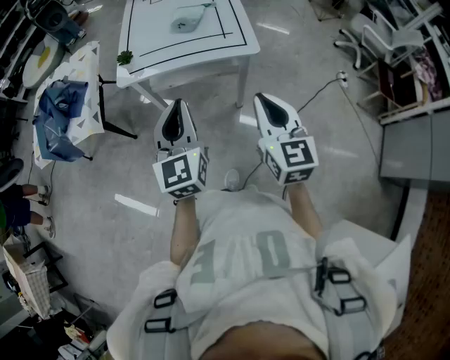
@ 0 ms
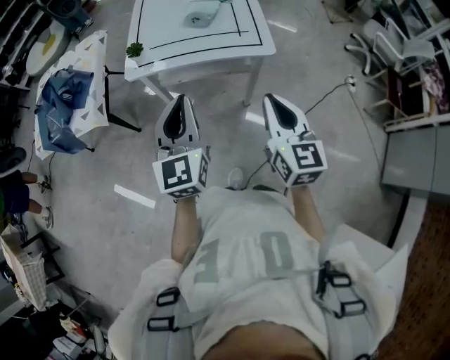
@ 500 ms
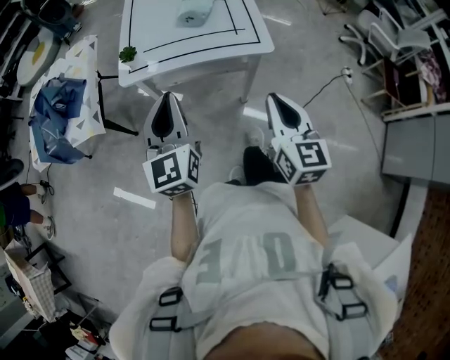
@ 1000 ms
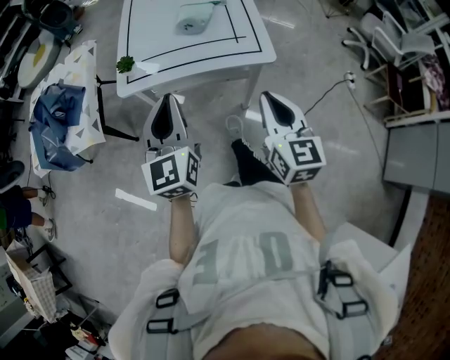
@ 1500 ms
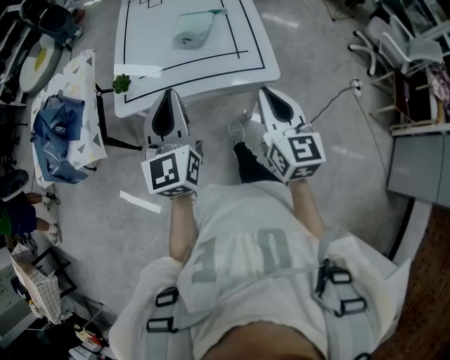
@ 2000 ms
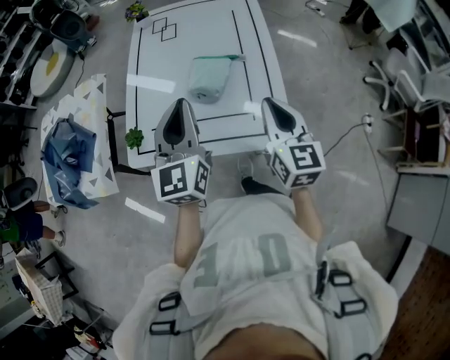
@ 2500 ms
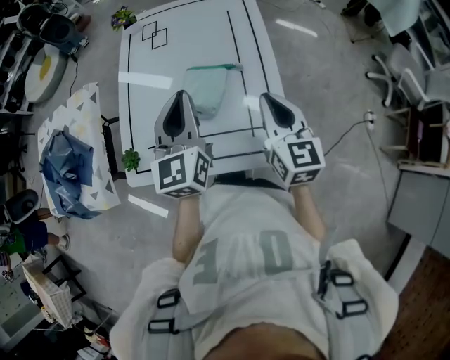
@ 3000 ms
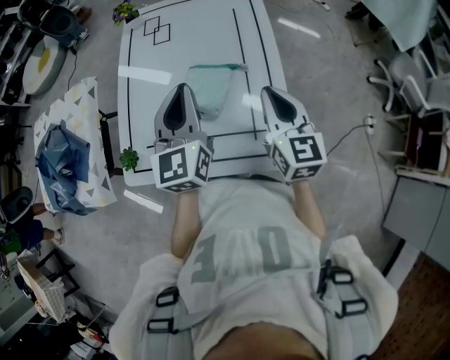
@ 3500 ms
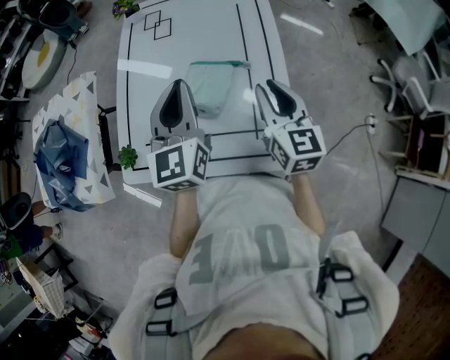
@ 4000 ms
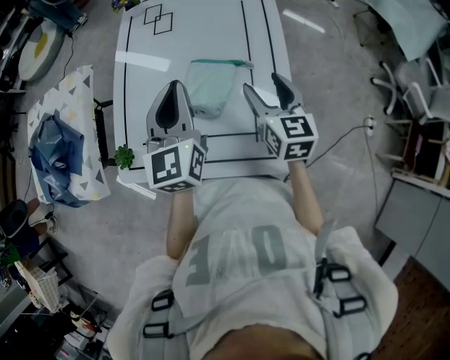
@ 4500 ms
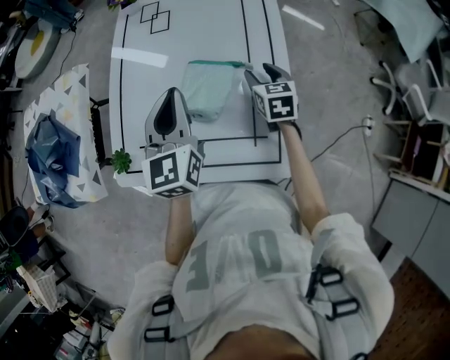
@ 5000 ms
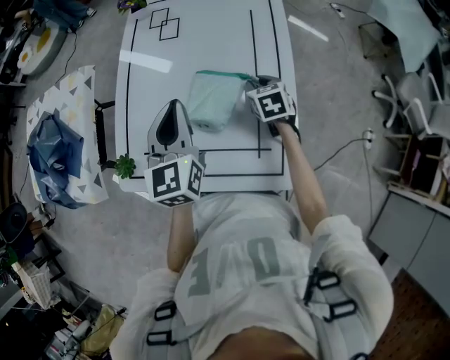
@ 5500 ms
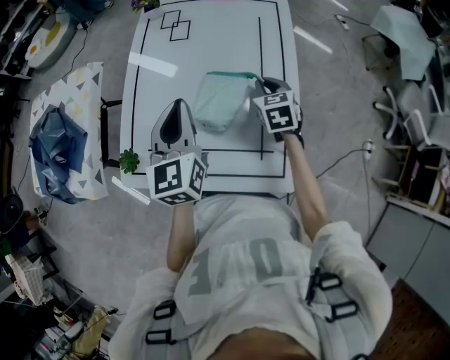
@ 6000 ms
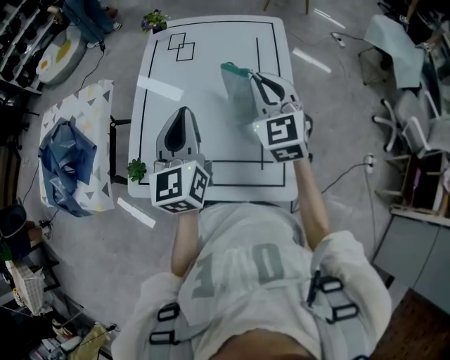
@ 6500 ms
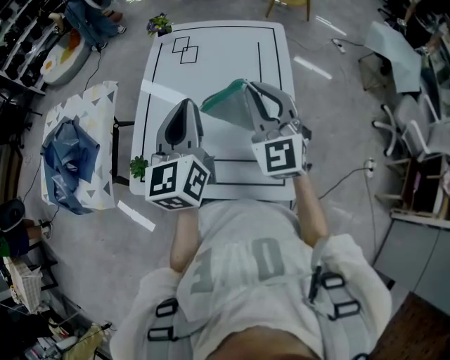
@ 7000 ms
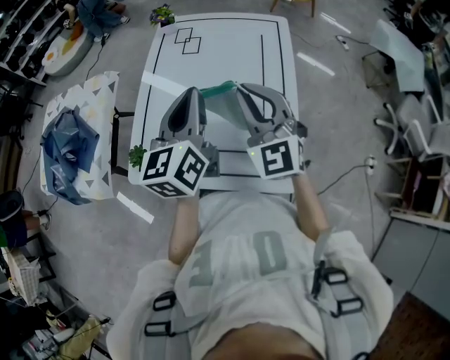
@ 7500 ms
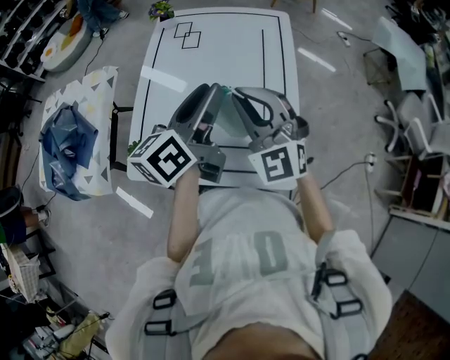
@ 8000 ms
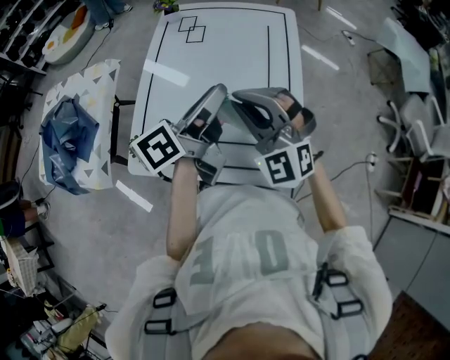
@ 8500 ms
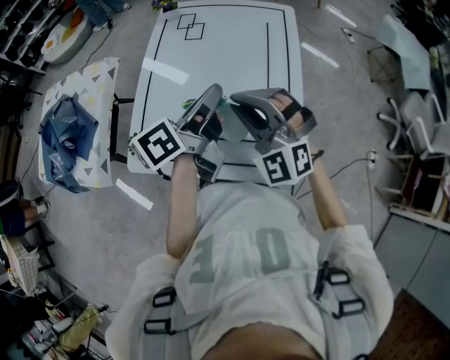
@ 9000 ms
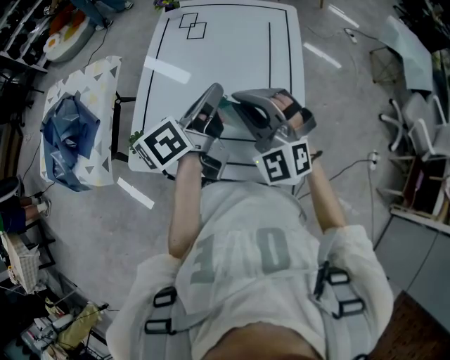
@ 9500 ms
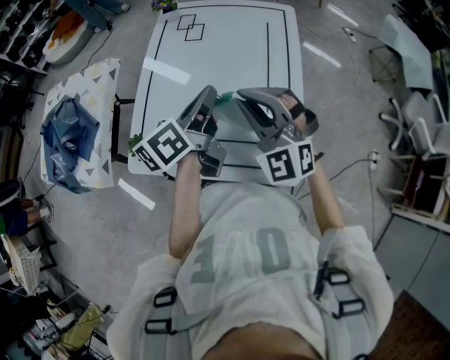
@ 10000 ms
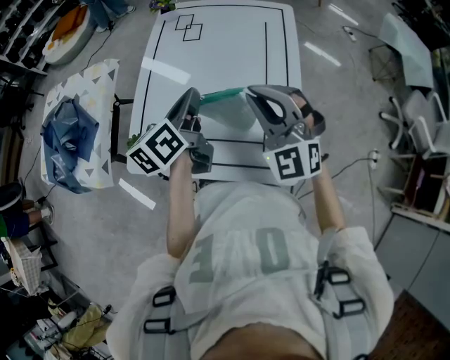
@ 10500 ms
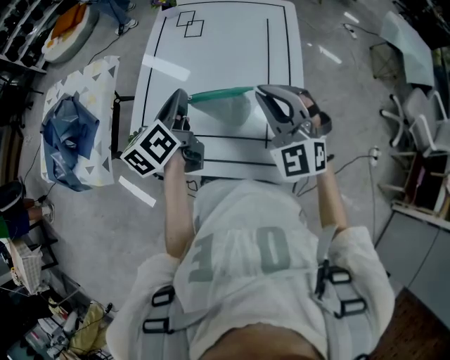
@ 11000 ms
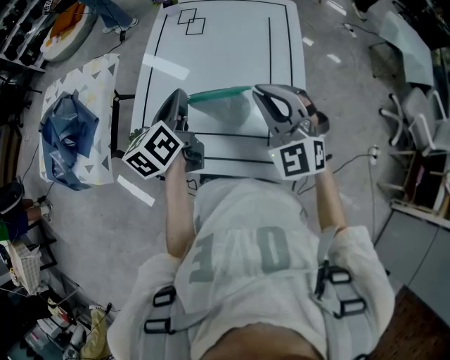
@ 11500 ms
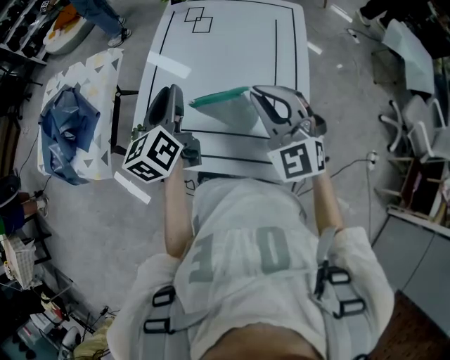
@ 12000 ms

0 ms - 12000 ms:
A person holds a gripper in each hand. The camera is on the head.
0 ms - 2000 ms: Both grippers travel together forward, about 20 cm.
2000 ms - 4000 ms: Both grippers travel together forward, about 35 cm.
4000 ms - 6000 ms: The left gripper moves some 5 cm; the right gripper shifts some 15 cm forward and downward, rotates some 30 degrees, and opens, then closes once more.
6000 ms - 8000 ms: The right gripper heads upward, backward and to the left, covering approximately 25 cm, and tips its fingers upward by roughly 40 degrees. The left gripper is displaced upward and to the right by about 10 cm, turns by some 40 degrees, and opens its fingers.
8000 ms - 10000 ms: The left gripper shifts roughly 5 cm downward, and closes up.
10000 ms - 12000 ms: The left gripper heads to the left, covering roughly 10 cm, and swivels roughly 30 degrees.

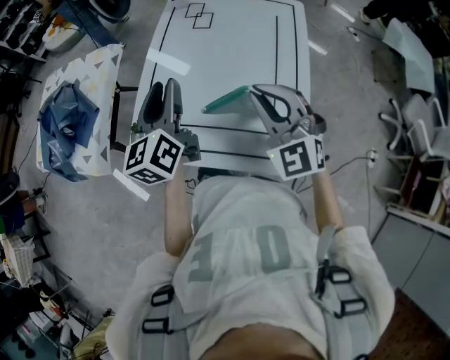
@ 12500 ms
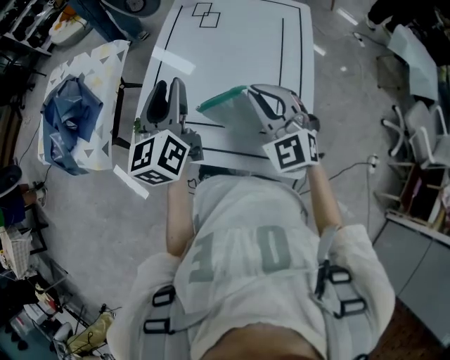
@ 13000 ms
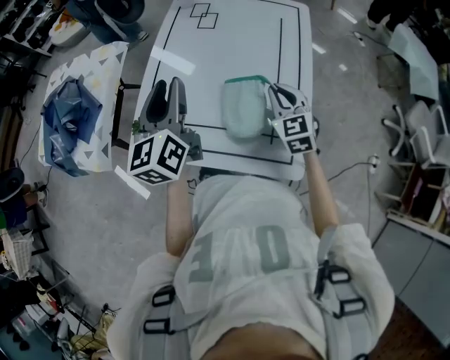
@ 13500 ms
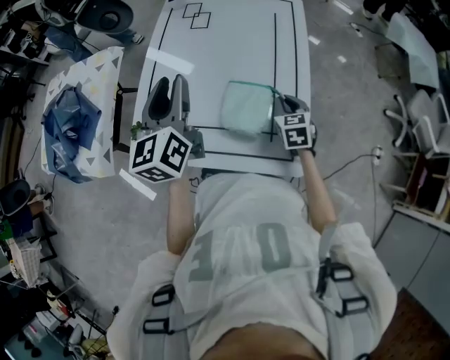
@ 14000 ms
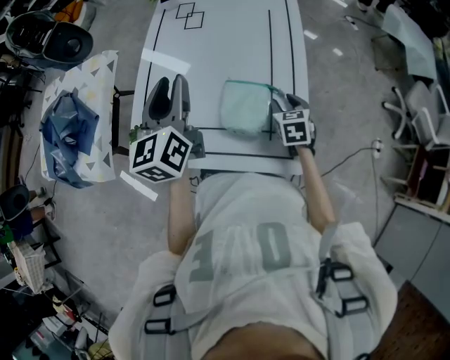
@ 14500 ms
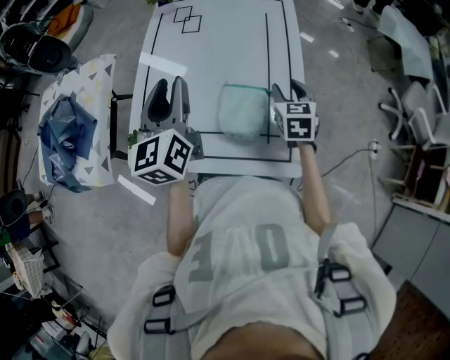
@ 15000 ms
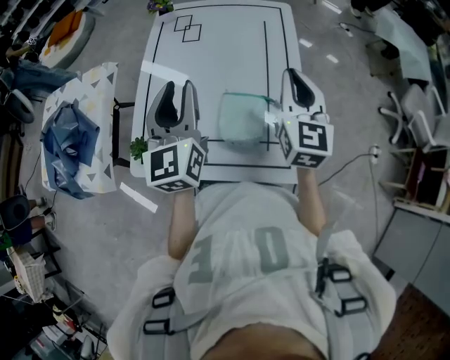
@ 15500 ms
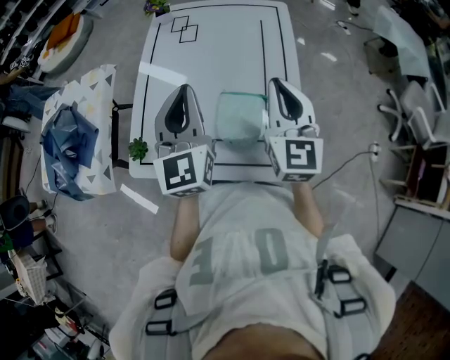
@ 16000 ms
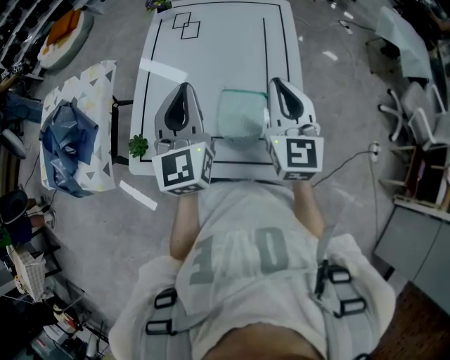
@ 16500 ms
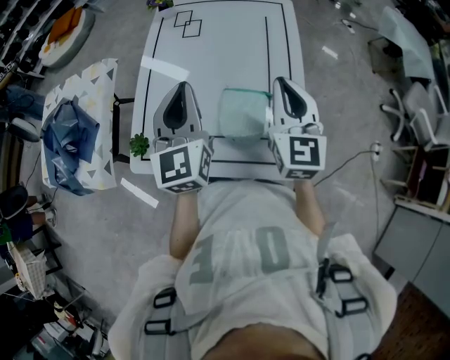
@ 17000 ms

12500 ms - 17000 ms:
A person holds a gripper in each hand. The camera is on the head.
12500 ms - 14500 ms: The right gripper shifts some 25 cm downward and to the right, tilts its fingers some 30 degrees downward, and opens up.
14500 ms - 17000 ms: The left gripper closes its fingers, while the right gripper travels upward by approximately 25 cm, angles its fingers upward, by roughly 40 degrees, and closes its fingers.

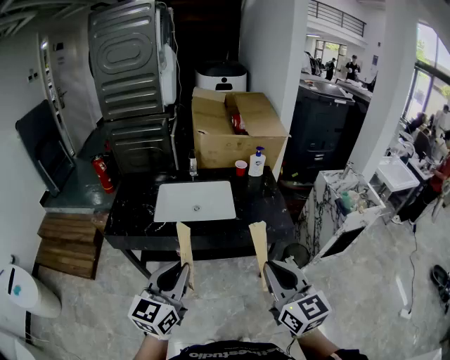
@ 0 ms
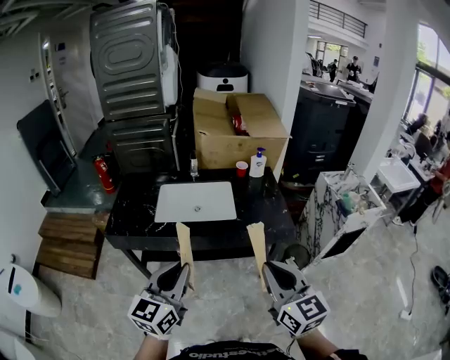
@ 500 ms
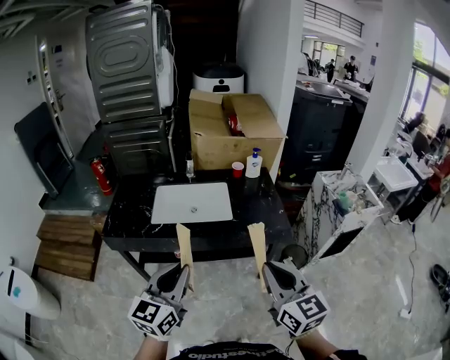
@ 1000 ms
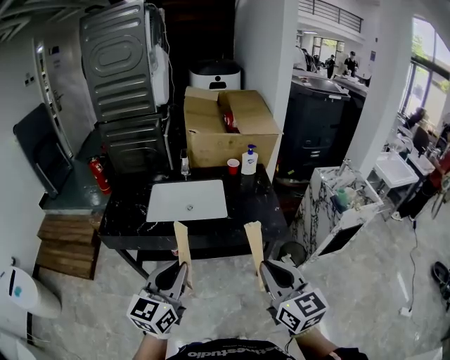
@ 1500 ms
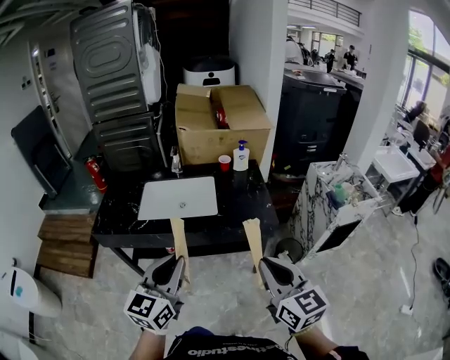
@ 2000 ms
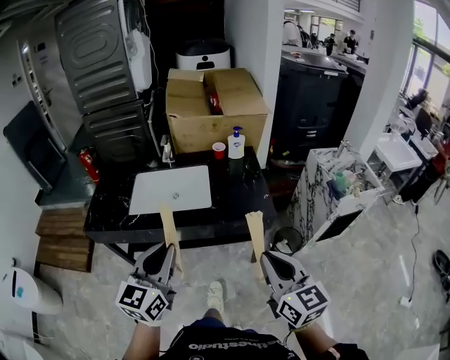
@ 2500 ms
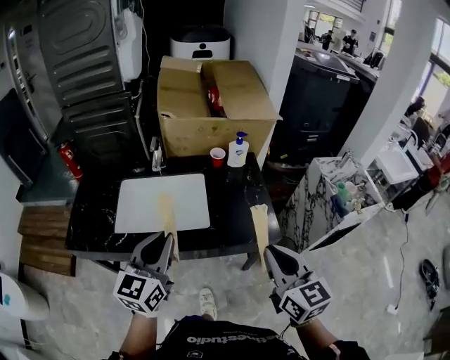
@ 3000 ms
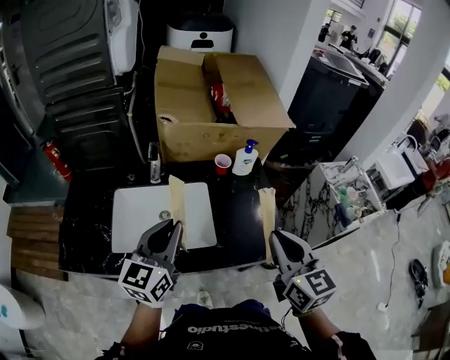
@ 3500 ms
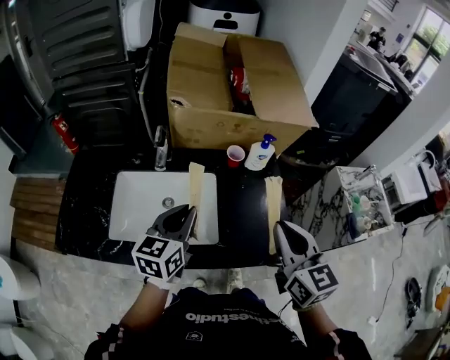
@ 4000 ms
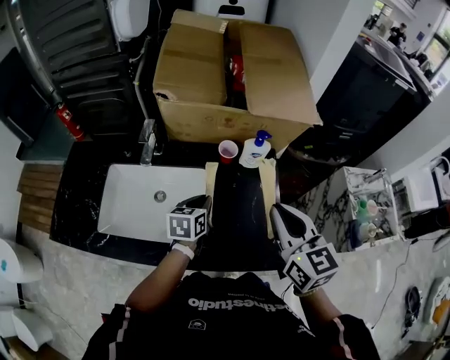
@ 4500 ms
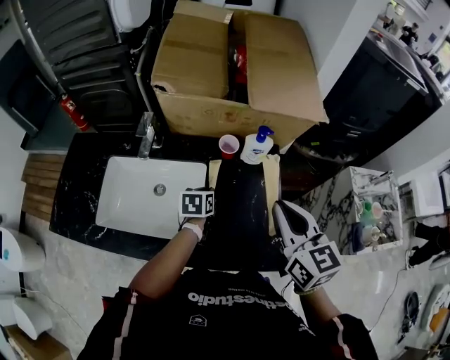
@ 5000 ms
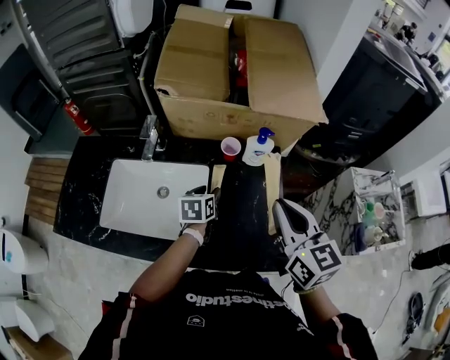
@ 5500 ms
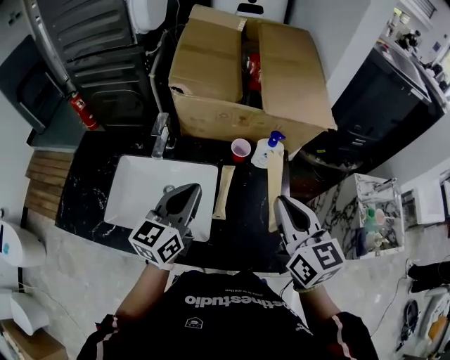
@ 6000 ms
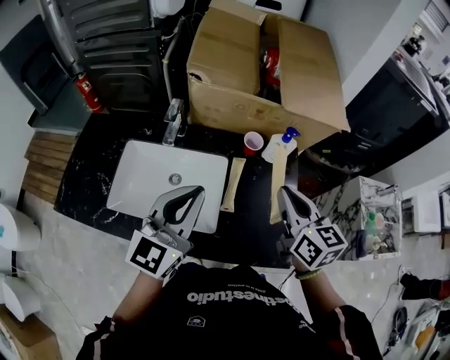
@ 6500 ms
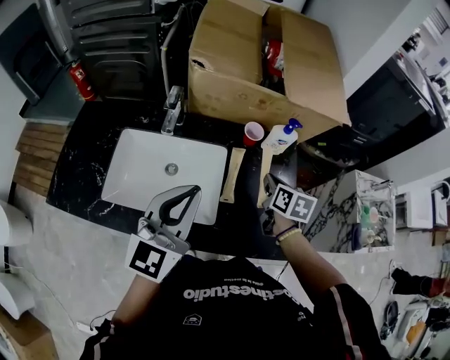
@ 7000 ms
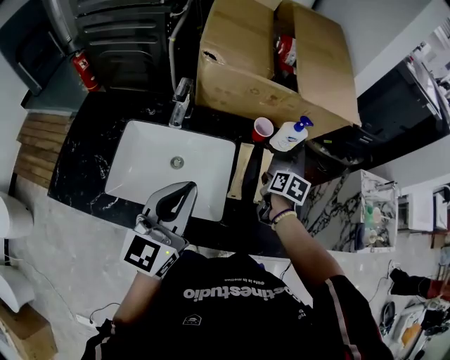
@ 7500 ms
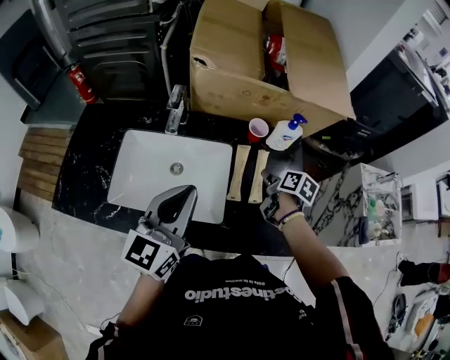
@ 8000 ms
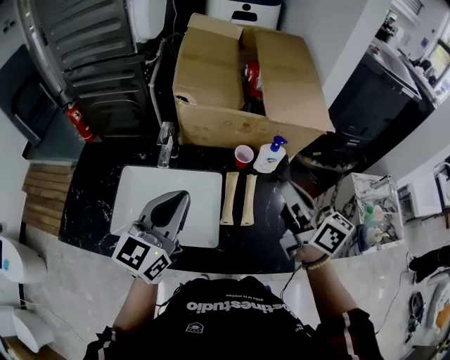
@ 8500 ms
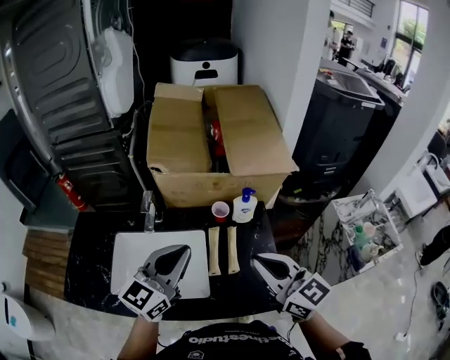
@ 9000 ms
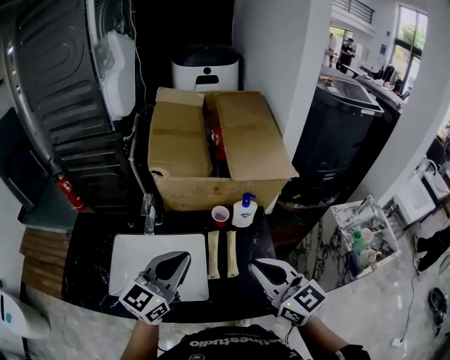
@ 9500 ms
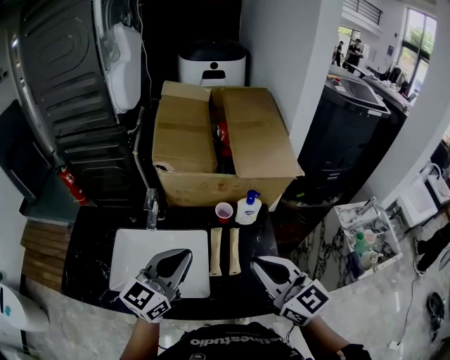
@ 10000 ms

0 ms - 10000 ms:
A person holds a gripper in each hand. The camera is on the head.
0 ms - 2000 ms: The two grippers go about 10 cm to the right.
2000 ms - 4000 ms: Both grippers are carried forward, roughly 40 cm.
4000 ms - 6000 ms: The left gripper moves forward and to the right, about 10 cm, moves about 20 cm downward and comes back, and opens, then closes once more, while the right gripper moves forward, roughly 10 cm.
6000 ms - 8000 ms: The left gripper travels to the left and backward by roughly 10 cm, while the right gripper moves downward, roughly 25 cm, points its fingers approximately 30 degrees further downward, and opens up.
8000 ms - 10000 ms: The right gripper goes approximately 35 cm upward and backward, tips its fingers upward by some 40 degrees, and closes. Meanwhile the left gripper goes about 10 cm to the right and upward.
